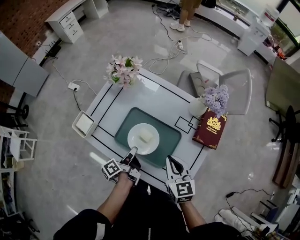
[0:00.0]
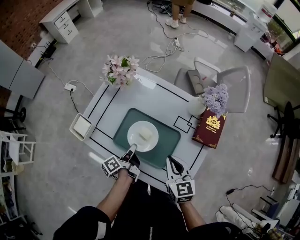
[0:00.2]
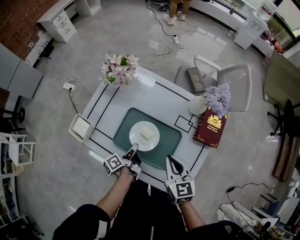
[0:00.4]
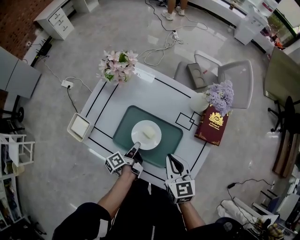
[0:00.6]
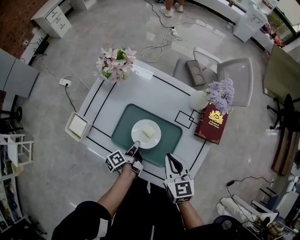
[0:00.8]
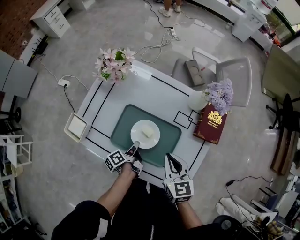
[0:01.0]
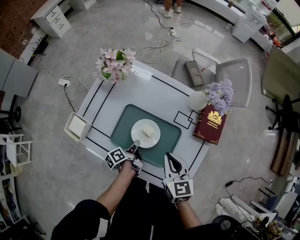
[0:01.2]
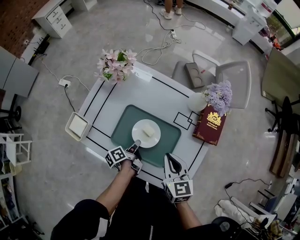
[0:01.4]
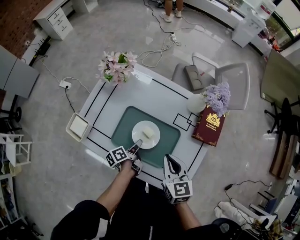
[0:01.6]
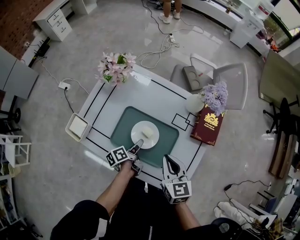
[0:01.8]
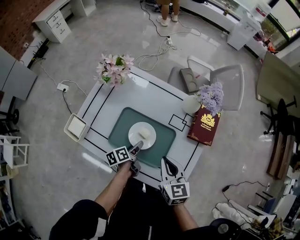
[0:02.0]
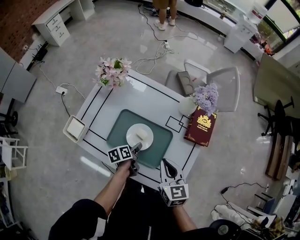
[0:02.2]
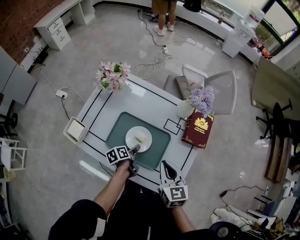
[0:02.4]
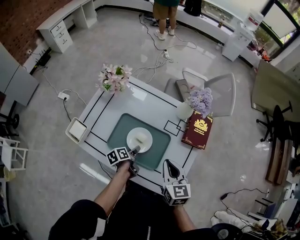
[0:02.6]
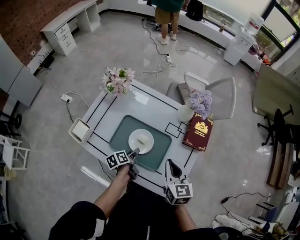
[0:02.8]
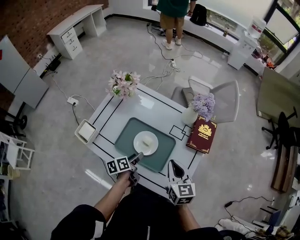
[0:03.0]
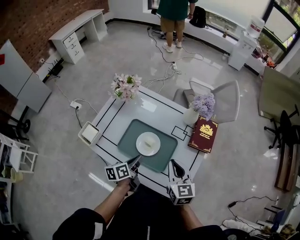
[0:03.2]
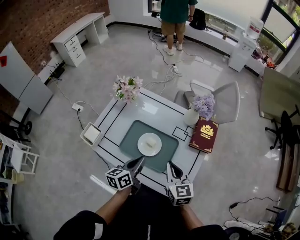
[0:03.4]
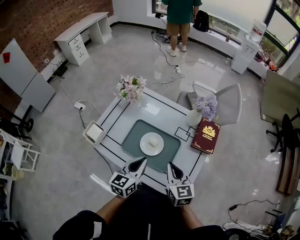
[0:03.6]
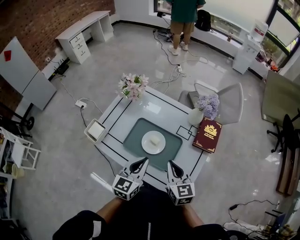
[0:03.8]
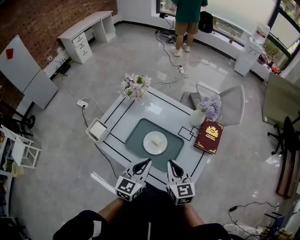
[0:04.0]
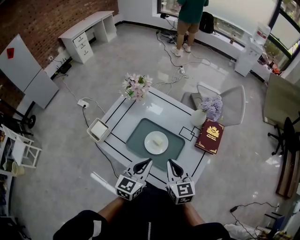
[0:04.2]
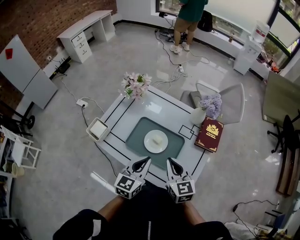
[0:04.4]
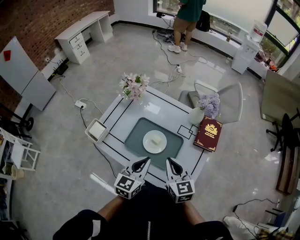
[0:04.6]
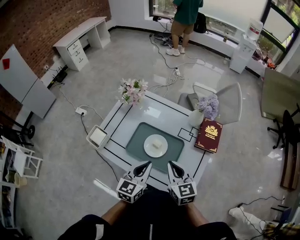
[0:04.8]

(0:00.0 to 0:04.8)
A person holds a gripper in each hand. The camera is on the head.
0:01.6 - 0:03.2: The right gripper heads upward, covering some 5 cm.
0:03.2 - 0:04.8: The right gripper moves about 5 cm.

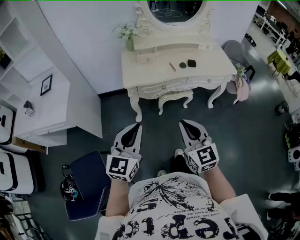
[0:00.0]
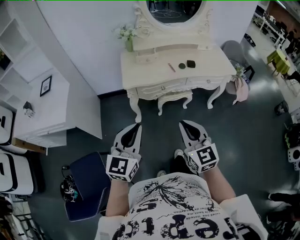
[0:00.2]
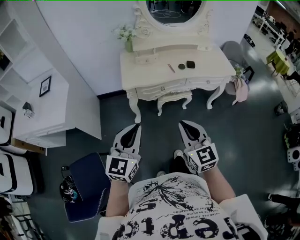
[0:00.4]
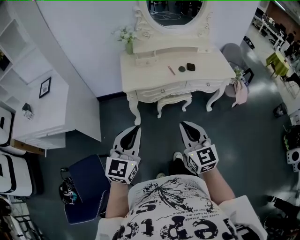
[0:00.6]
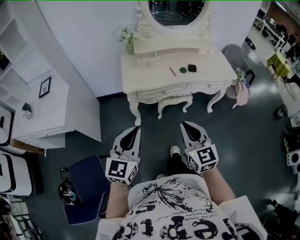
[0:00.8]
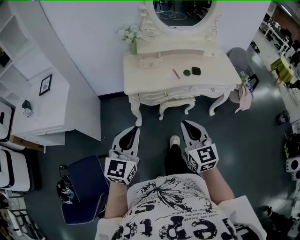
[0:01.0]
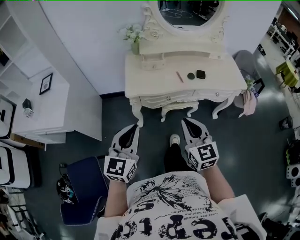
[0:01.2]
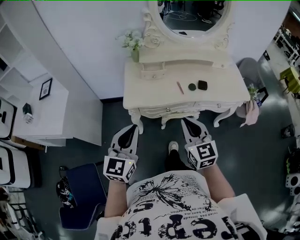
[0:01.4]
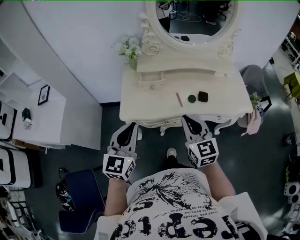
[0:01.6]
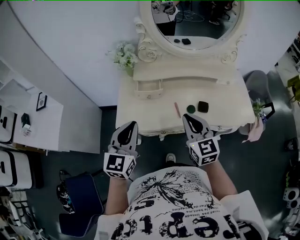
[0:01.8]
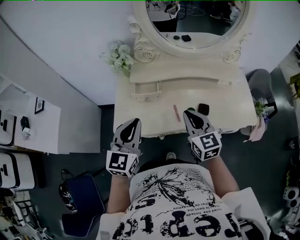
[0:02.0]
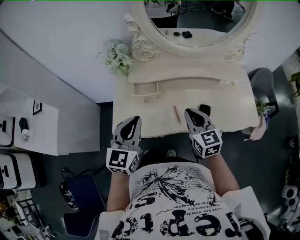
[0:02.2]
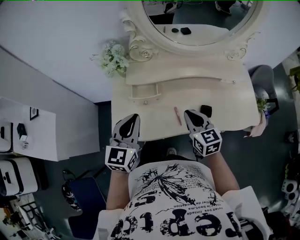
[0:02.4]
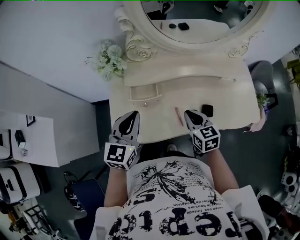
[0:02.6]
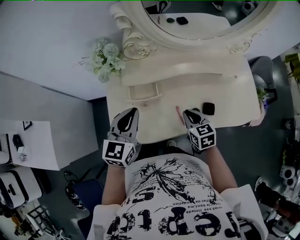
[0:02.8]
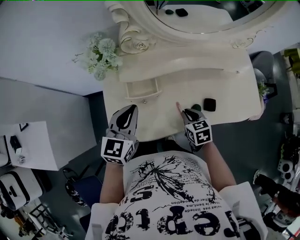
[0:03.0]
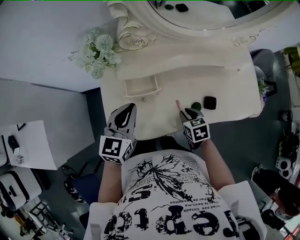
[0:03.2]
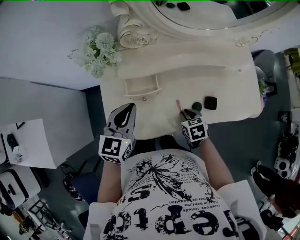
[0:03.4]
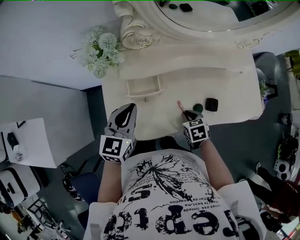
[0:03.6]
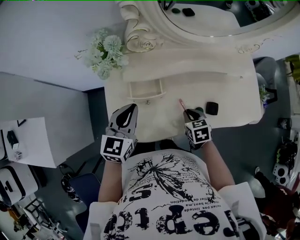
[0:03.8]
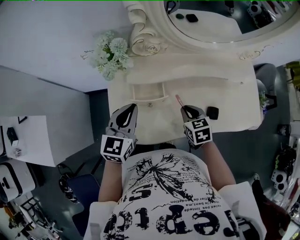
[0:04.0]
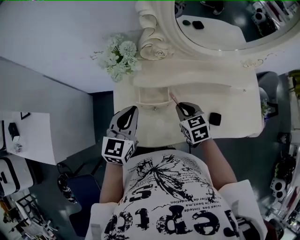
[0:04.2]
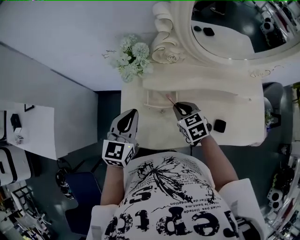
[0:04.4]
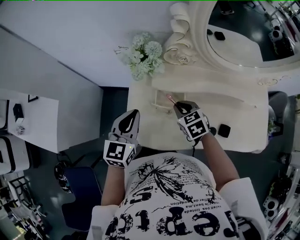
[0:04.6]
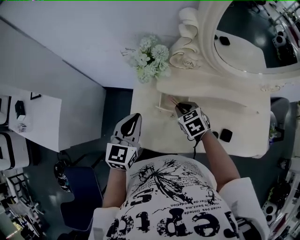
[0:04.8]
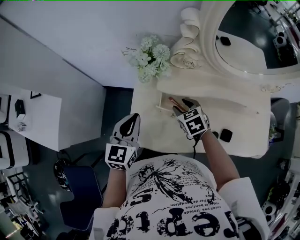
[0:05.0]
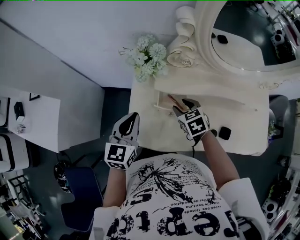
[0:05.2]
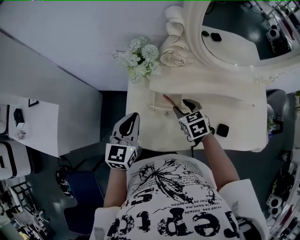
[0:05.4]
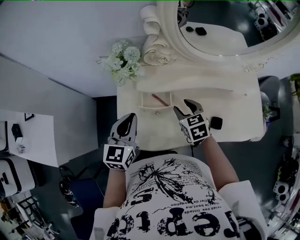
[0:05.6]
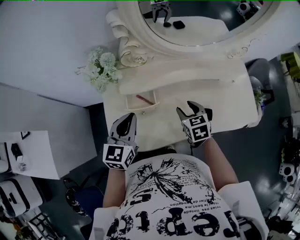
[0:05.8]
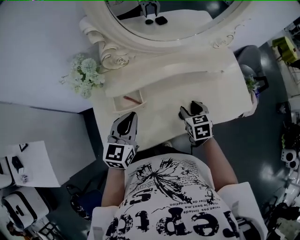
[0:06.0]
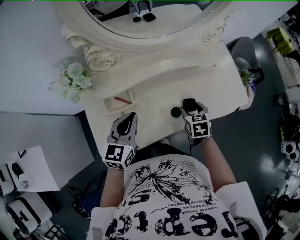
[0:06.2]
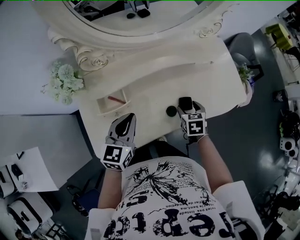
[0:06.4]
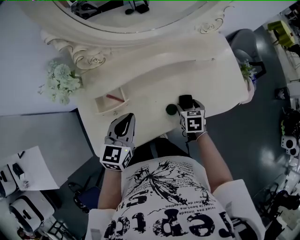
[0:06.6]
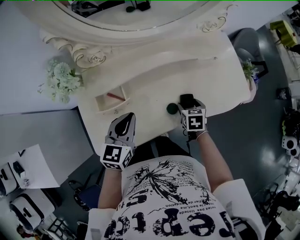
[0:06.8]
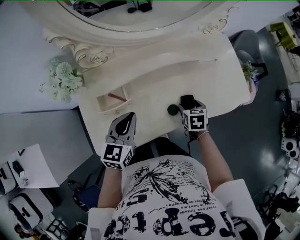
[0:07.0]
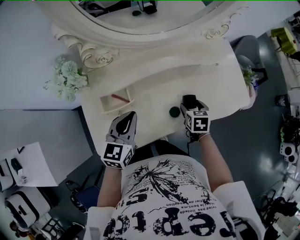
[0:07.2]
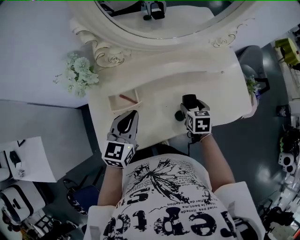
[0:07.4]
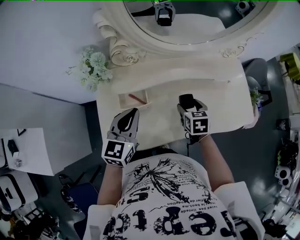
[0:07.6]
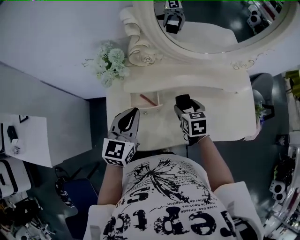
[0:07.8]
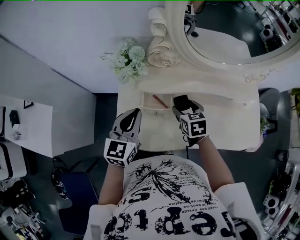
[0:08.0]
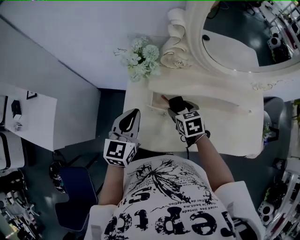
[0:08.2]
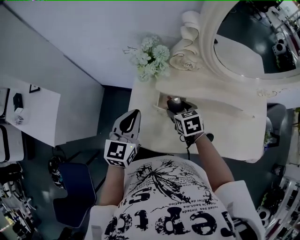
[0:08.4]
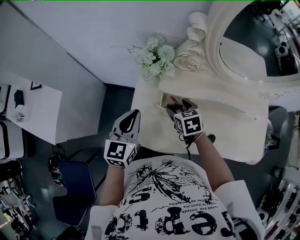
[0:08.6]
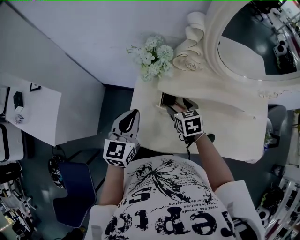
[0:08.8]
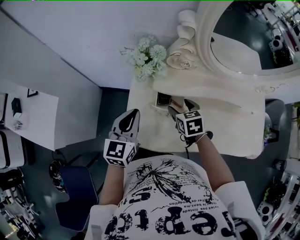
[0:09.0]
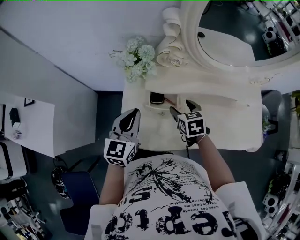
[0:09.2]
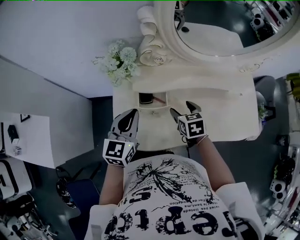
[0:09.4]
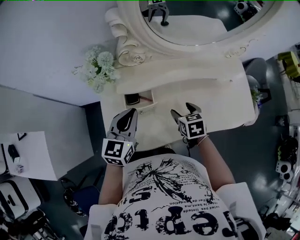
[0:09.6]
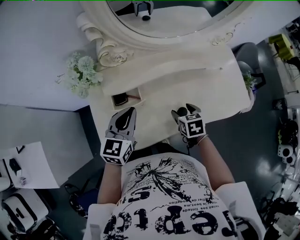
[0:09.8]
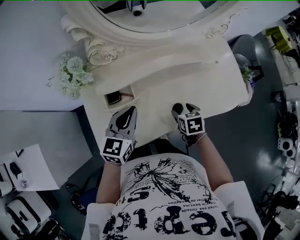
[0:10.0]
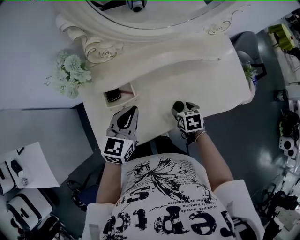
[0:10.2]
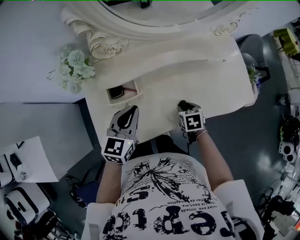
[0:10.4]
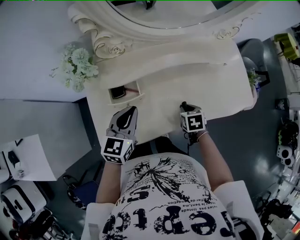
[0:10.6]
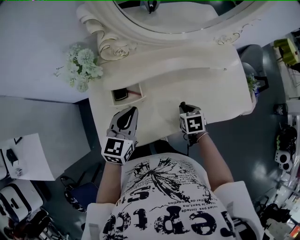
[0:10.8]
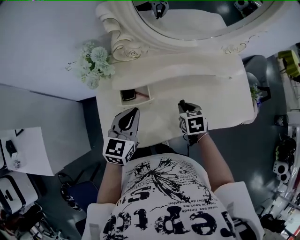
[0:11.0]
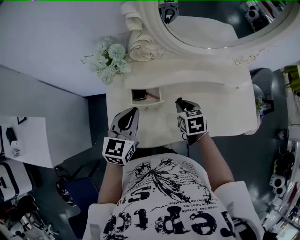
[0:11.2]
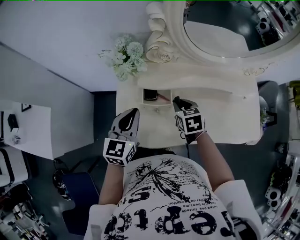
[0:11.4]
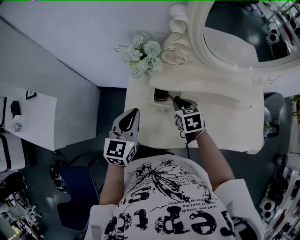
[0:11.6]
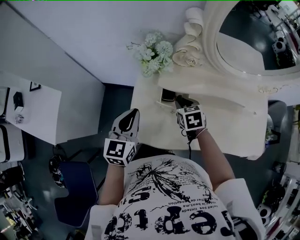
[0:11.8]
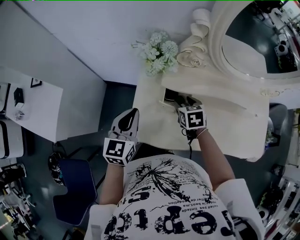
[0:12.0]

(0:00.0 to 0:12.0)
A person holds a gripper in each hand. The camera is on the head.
0:00.0 - 0:01.6: The grippers both shift forward by roughly 30 cm.
0:01.6 - 0:03.0: The left gripper travels forward by about 30 cm; the right gripper moves downward and forward, approximately 30 cm, and tips its fingers downward by roughly 40 degrees.
0:03.0 - 0:04.4: The right gripper goes about 15 cm to the left, forward and upward, and changes its angle by approximately 20 degrees; the left gripper travels to the left by some 10 cm.
0:04.4 - 0:06.0: The right gripper ends up approximately 20 cm from where it was, rotates approximately 30 degrees, and opens its fingers. The left gripper moves approximately 15 cm.
0:06.0 - 0:07.6: The right gripper goes to the right and returns, roughly 10 cm each way.
0:07.6 - 0:09.0: The left gripper shifts by some 15 cm. The right gripper shifts by some 25 cm, and rotates roughly 30 degrees.
0:09.0 - 0:10.4: The right gripper ends up about 30 cm from where it was, rotates approximately 30 degrees, and closes. The left gripper ends up some 20 cm from where it was, and swivels about 30 degrees.
0:10.4 - 0:12.0: The left gripper ends up roughly 20 cm from where it was, and swivels about 30 degrees, while the right gripper ends up some 30 cm from where it was, and swivels some 30 degrees.

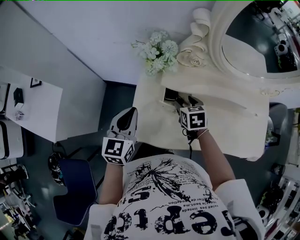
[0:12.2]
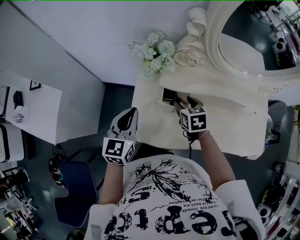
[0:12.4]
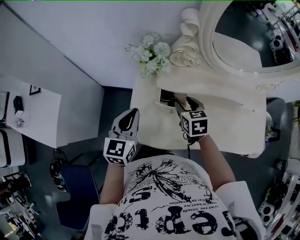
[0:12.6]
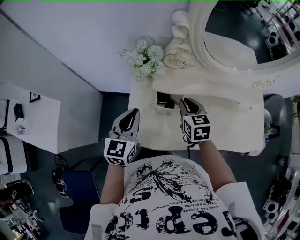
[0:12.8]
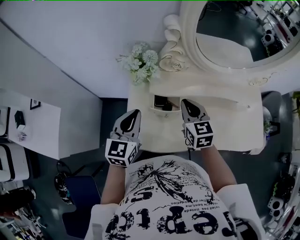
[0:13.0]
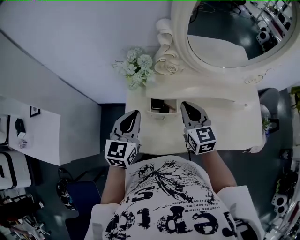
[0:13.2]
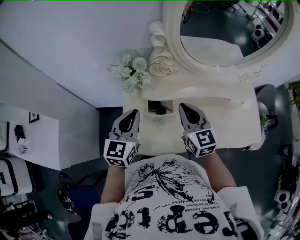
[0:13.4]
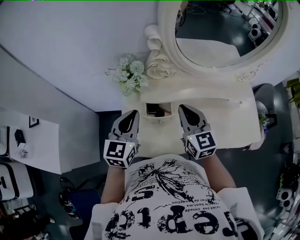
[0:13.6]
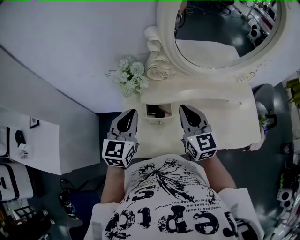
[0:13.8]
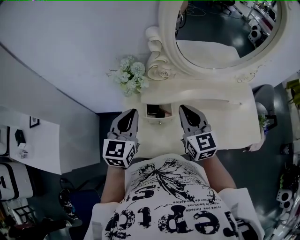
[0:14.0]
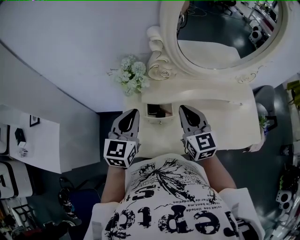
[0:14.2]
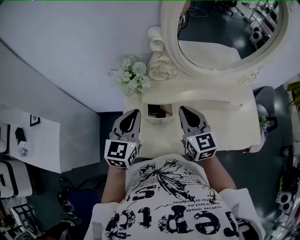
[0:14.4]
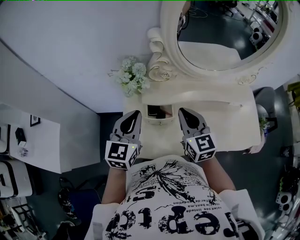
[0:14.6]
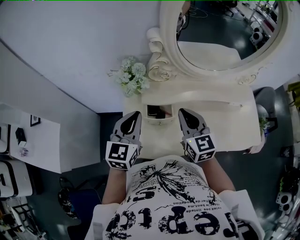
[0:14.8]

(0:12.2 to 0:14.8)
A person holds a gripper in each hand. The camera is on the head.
0:12.2 - 0:13.4: The right gripper shifts approximately 15 cm upward, tips its fingers upward by some 40 degrees, and closes its fingers. The left gripper goes roughly 10 cm to the right and upward.
0:13.4 - 0:14.8: There are only small adjustments of the grippers.

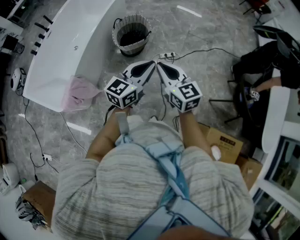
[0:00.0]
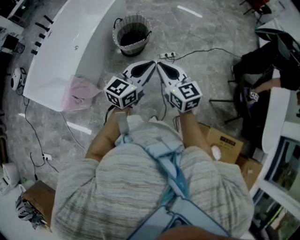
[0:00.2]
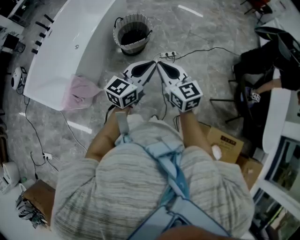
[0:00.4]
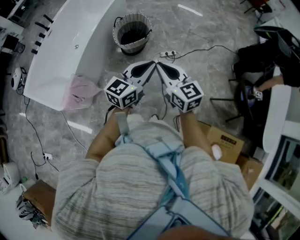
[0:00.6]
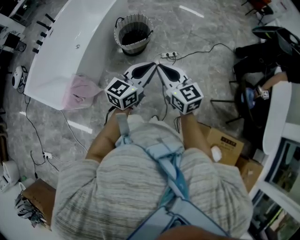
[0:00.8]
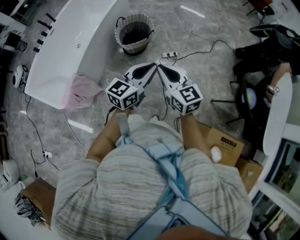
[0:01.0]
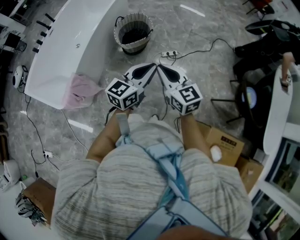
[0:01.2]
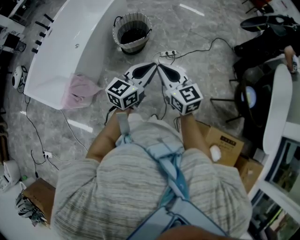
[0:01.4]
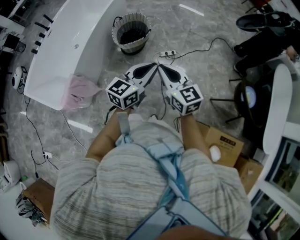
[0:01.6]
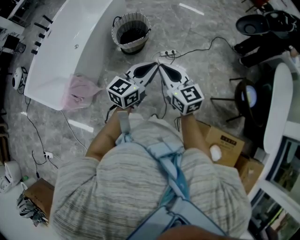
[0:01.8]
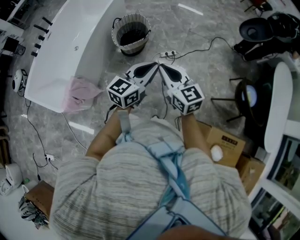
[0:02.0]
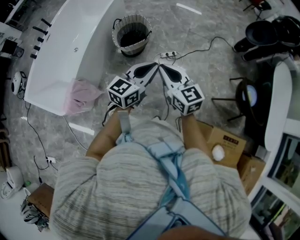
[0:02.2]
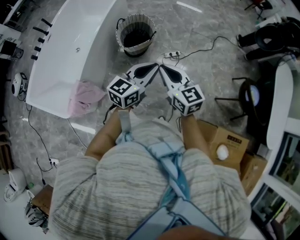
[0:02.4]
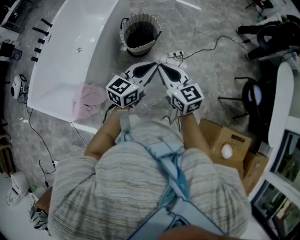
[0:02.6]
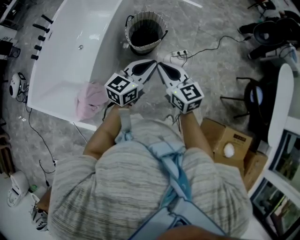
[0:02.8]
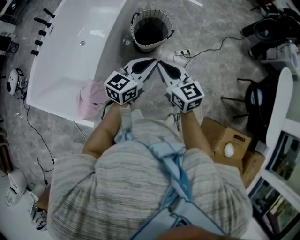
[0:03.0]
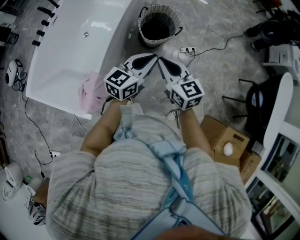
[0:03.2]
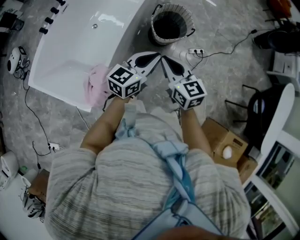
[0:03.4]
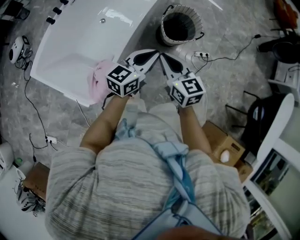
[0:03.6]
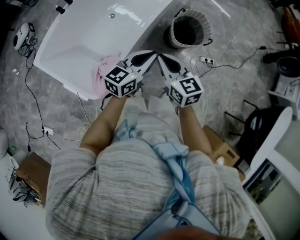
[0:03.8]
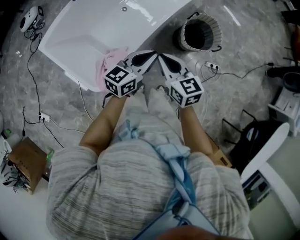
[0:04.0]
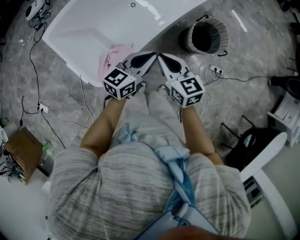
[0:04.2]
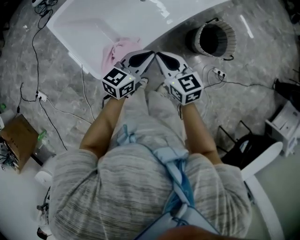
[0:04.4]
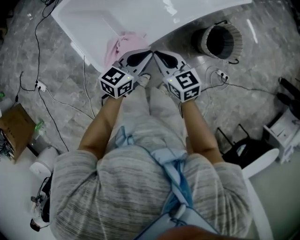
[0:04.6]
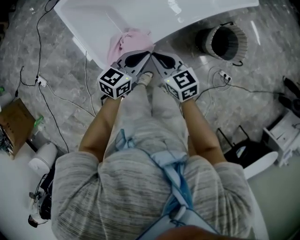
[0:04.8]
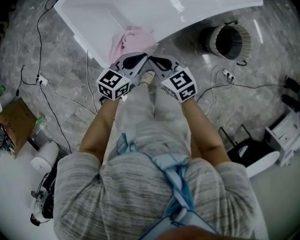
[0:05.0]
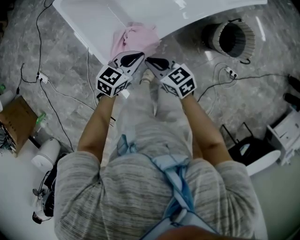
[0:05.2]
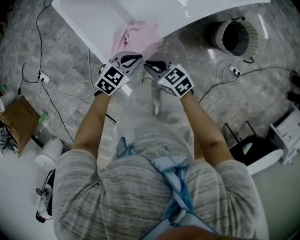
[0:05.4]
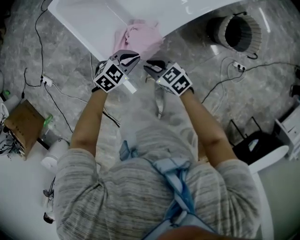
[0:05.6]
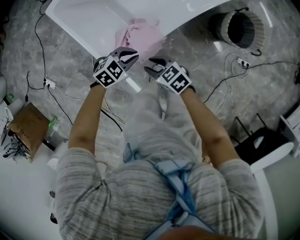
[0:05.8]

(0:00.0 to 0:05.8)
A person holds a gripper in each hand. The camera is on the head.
0:00.0 - 0:01.4: The grippers stay close to where they were, moving slightly.
0:01.4 - 0:02.8: Both grippers move to the left, roughly 20 cm.
0:02.8 - 0:04.4: The right gripper moves about 40 cm, and rotates some 40 degrees; the left gripper ends up roughly 40 cm from where it was, and turns by about 30 degrees.
0:04.4 - 0:05.8: The two grippers go about 20 cm downward. The right gripper swivels approximately 40 degrees, and opens; the left gripper tips its fingers downward by approximately 40 degrees.